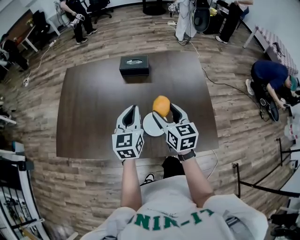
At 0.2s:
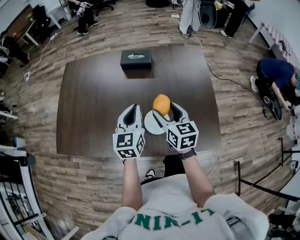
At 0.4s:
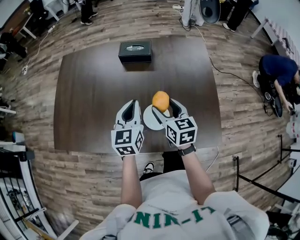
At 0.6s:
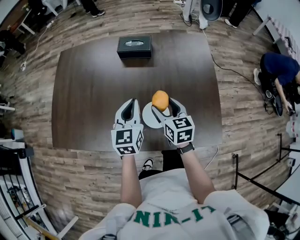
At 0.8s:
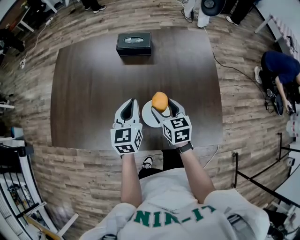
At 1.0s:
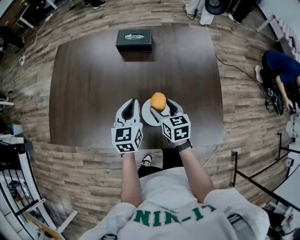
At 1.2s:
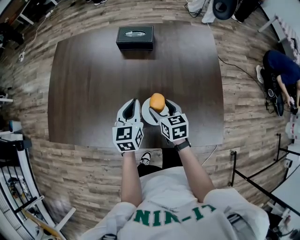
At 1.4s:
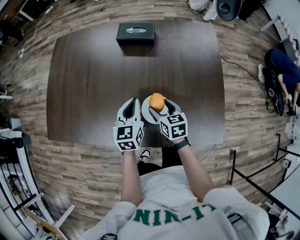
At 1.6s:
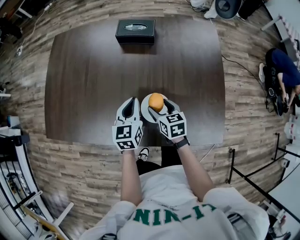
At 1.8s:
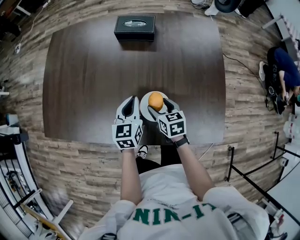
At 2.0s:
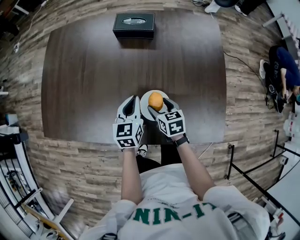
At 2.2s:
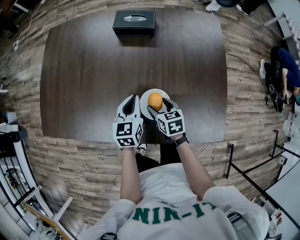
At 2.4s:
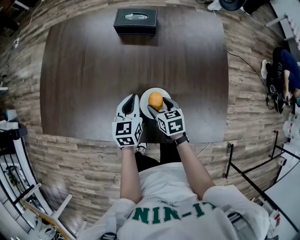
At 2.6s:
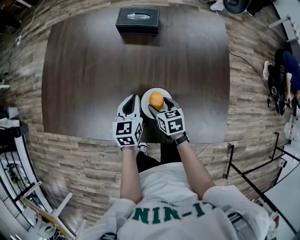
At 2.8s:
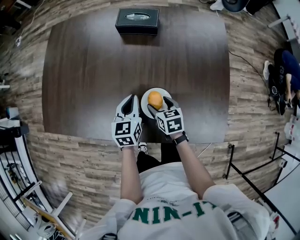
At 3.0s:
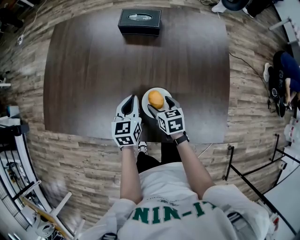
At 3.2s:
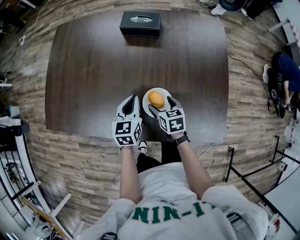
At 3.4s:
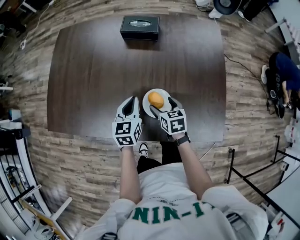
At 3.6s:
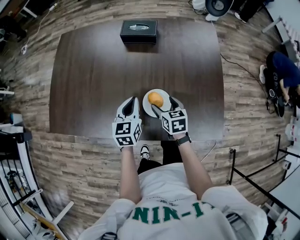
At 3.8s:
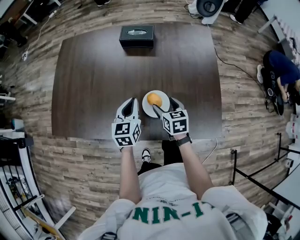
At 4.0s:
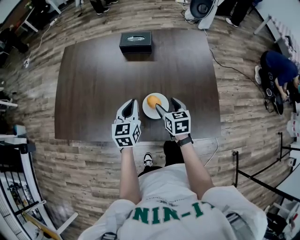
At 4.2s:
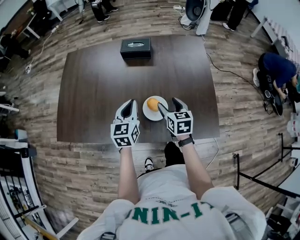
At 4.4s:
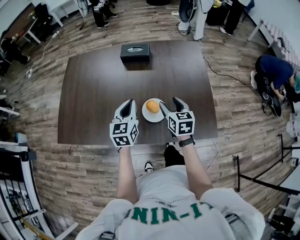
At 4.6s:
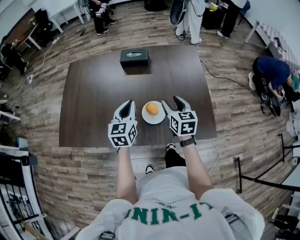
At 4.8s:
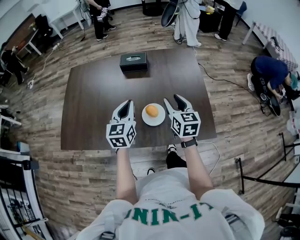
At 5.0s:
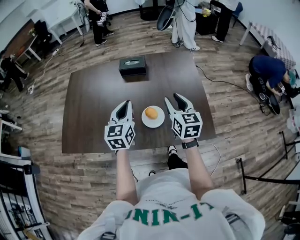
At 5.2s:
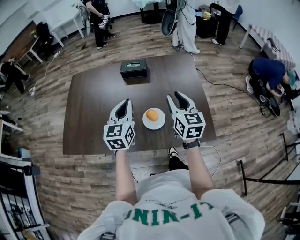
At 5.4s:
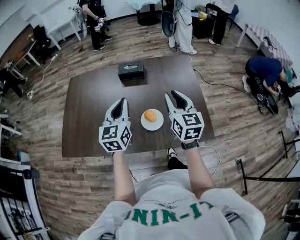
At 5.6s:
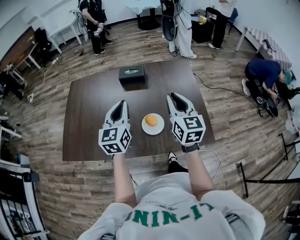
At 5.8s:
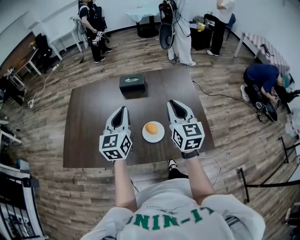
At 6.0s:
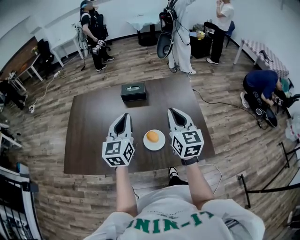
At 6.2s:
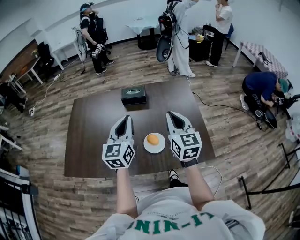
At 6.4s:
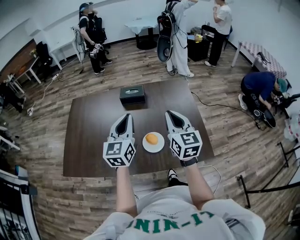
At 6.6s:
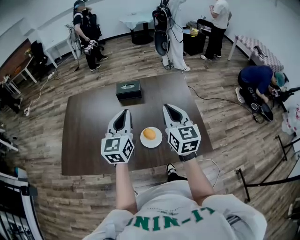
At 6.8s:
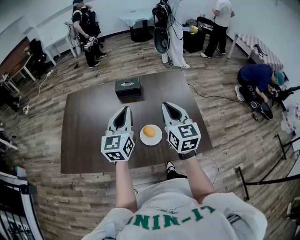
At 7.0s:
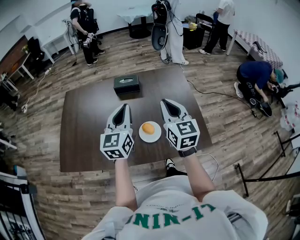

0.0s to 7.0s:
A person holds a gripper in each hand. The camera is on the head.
0.0s to 1.4s: Both grippers travel together downward, approximately 20 cm. The right gripper turns by about 20 degrees.
1.4s to 2.8s: Both grippers move downward, approximately 5 cm.
2.8s to 4.2s: The right gripper heads upward, covering roughly 15 cm, and rotates some 20 degrees. Meanwhile the left gripper travels upward and backward by about 15 cm.
4.2s to 5.6s: The grippers both shift upward by roughly 20 cm. The right gripper swivels roughly 30 degrees, and closes up.
5.6s to 7.0s: There are only small adjustments of the grippers.

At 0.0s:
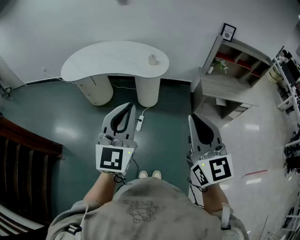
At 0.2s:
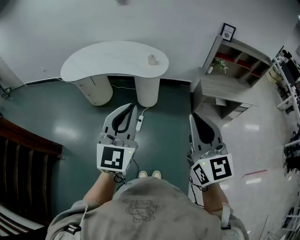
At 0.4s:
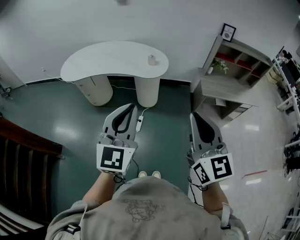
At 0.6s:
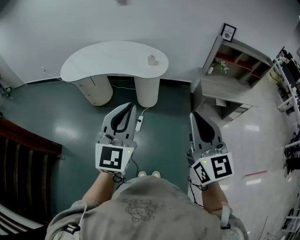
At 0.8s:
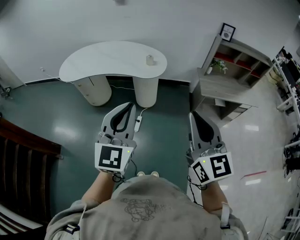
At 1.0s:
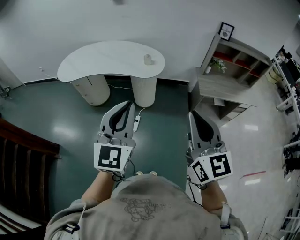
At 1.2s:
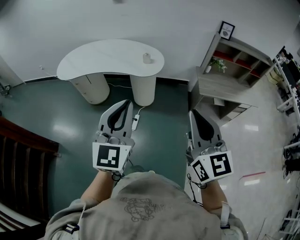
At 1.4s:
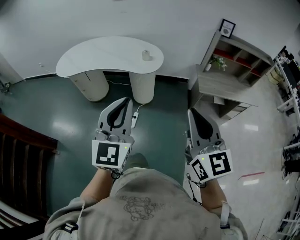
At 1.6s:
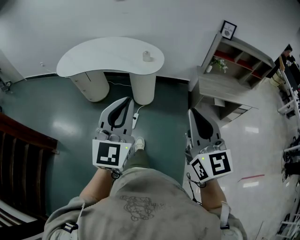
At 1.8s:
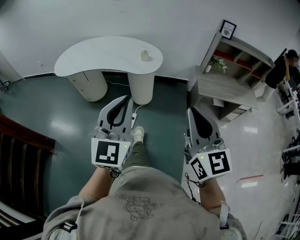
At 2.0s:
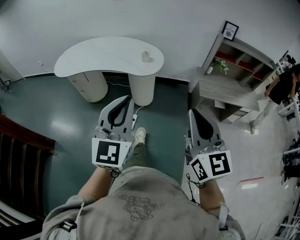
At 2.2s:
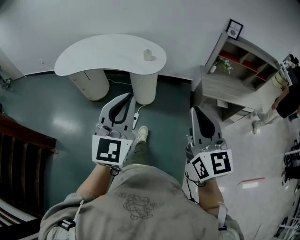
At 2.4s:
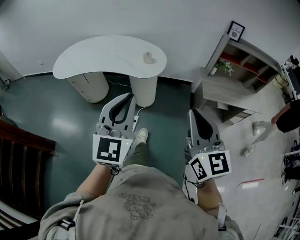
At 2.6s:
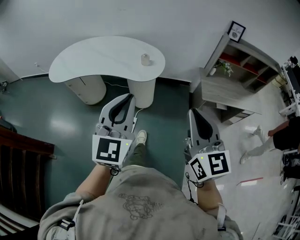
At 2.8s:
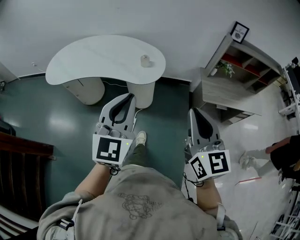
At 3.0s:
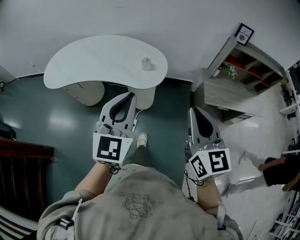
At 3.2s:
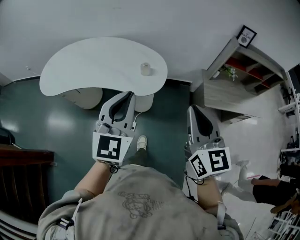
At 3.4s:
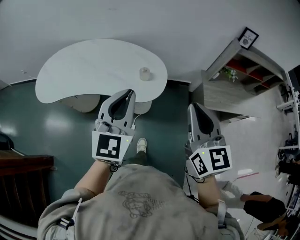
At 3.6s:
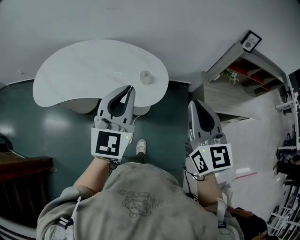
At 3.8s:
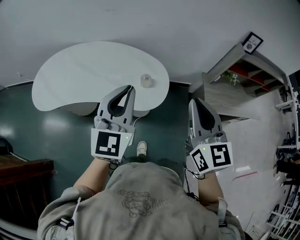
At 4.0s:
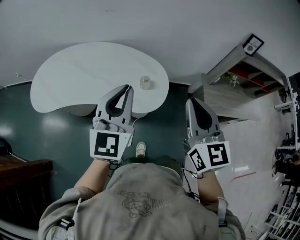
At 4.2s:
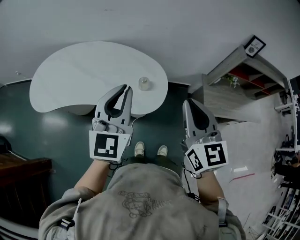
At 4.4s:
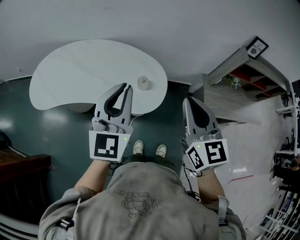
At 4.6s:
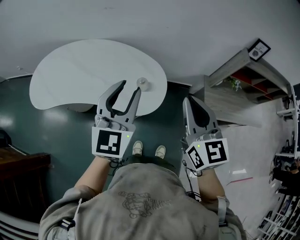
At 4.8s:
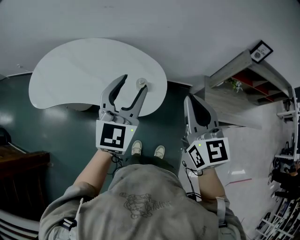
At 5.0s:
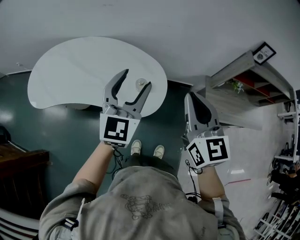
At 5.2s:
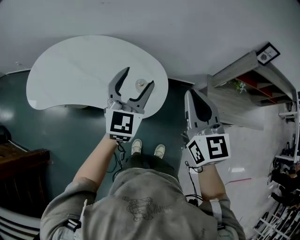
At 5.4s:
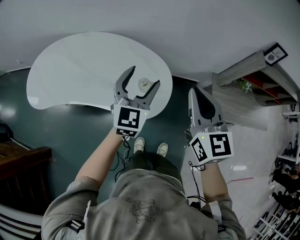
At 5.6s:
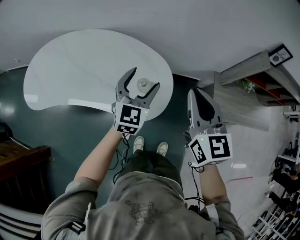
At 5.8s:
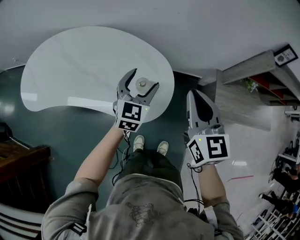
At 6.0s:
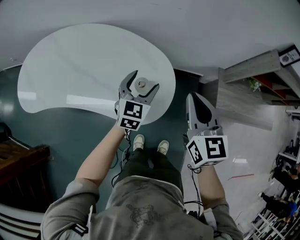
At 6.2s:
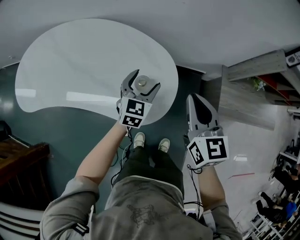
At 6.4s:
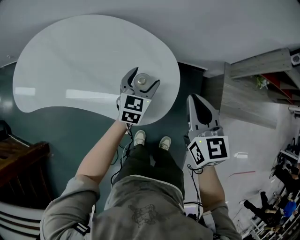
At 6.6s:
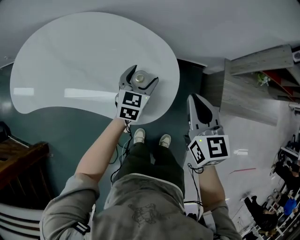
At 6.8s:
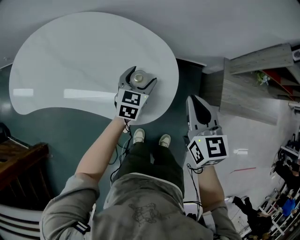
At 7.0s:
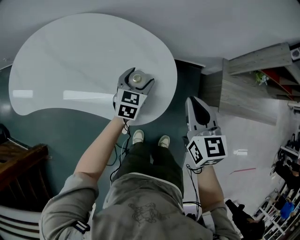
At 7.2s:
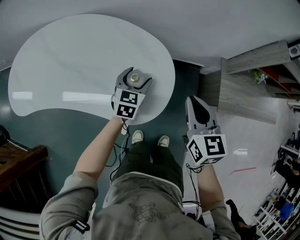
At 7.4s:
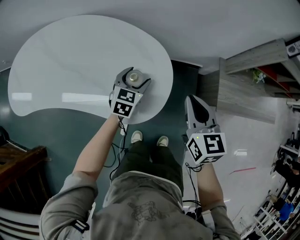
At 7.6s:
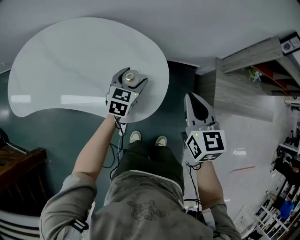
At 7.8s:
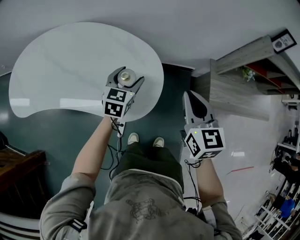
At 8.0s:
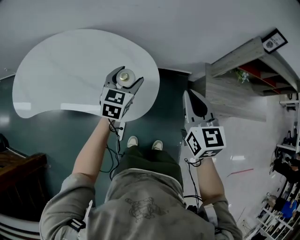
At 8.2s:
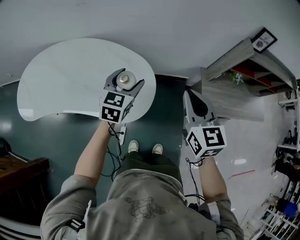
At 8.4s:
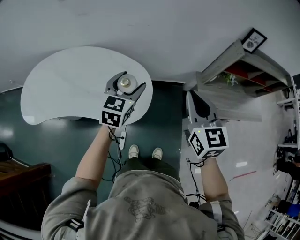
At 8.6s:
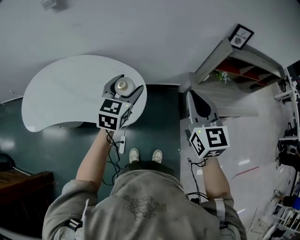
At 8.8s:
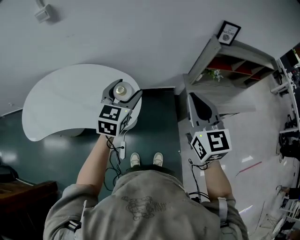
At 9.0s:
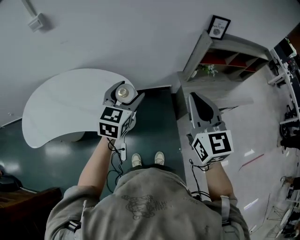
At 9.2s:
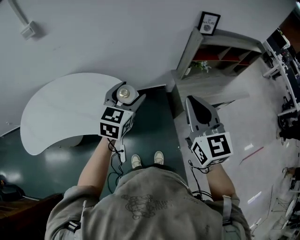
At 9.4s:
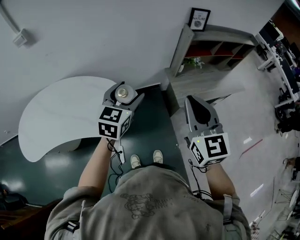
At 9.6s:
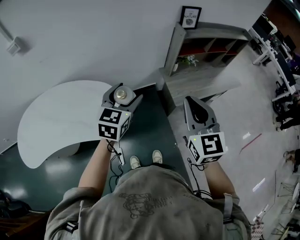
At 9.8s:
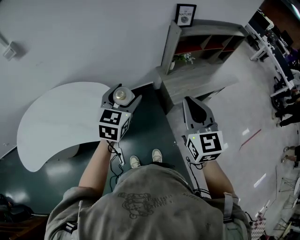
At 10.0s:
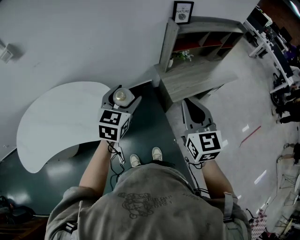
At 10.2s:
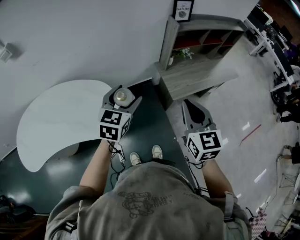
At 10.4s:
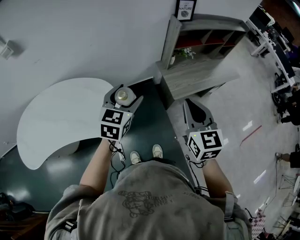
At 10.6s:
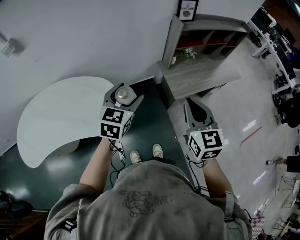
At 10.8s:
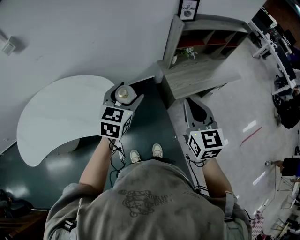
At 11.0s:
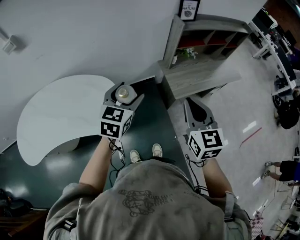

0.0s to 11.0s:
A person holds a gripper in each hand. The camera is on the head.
0.0s to 1.6s: The grippers both shift to the right by about 5 cm.
1.6s to 3.2s: The grippers both shift forward by approximately 30 cm.
3.2s to 4.8s: Both grippers travel together forward, some 20 cm. The left gripper opens up.
4.8s to 6.2s: The left gripper moves downward and forward, approximately 35 cm, rotates some 20 degrees, and opens. The right gripper goes roughly 25 cm downward and forward.
6.2s to 7.8s: The left gripper reaches approximately 10 cm downward, then returns. The right gripper moves some 5 cm.
7.8s to 9.4s: The right gripper shifts approximately 30 cm upward, to the right and backward, and rotates approximately 20 degrees. Meanwhile the left gripper moves upward and to the right, approximately 35 cm, and changes its angle by roughly 20 degrees.
9.4s to 11.0s: The right gripper goes approximately 5 cm downward.

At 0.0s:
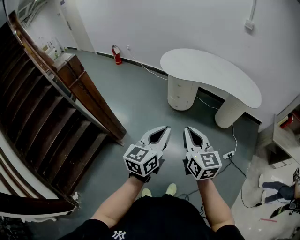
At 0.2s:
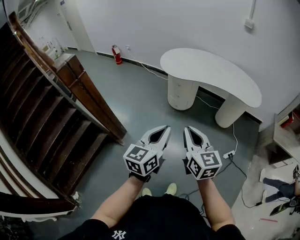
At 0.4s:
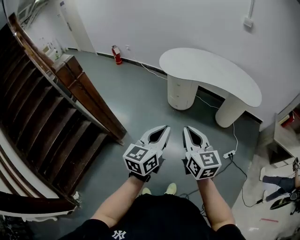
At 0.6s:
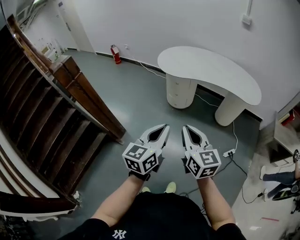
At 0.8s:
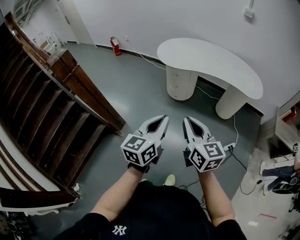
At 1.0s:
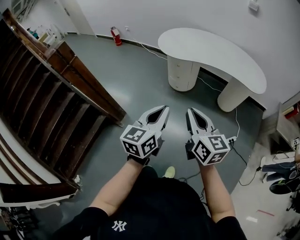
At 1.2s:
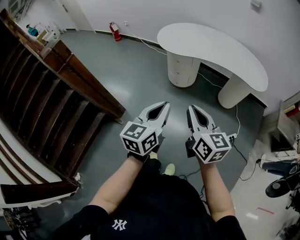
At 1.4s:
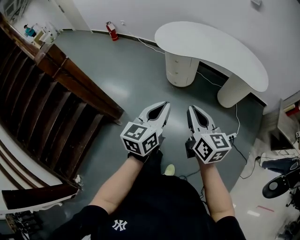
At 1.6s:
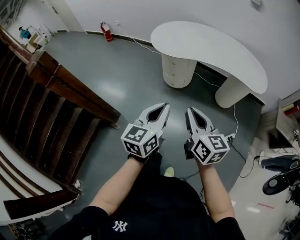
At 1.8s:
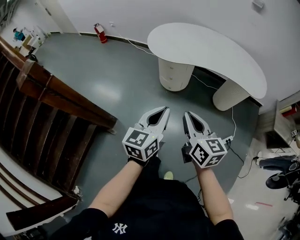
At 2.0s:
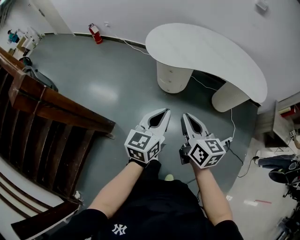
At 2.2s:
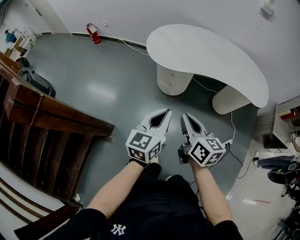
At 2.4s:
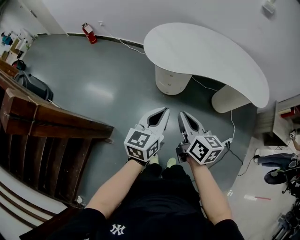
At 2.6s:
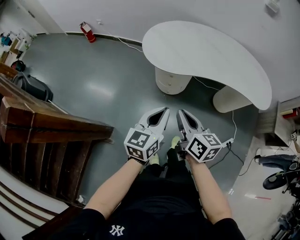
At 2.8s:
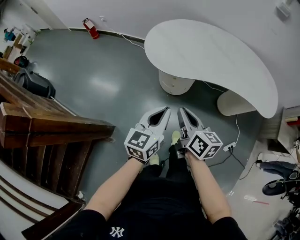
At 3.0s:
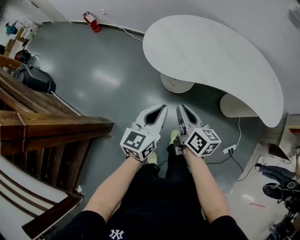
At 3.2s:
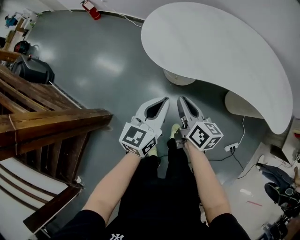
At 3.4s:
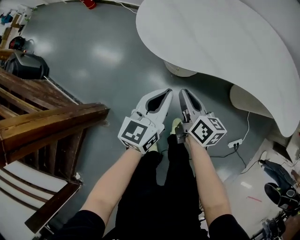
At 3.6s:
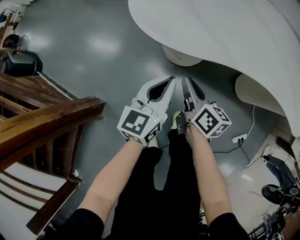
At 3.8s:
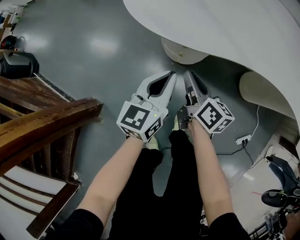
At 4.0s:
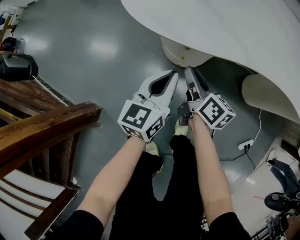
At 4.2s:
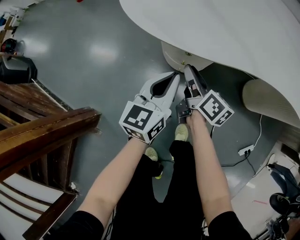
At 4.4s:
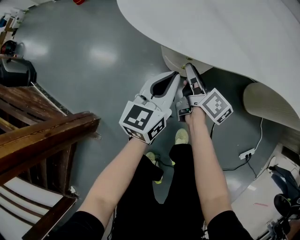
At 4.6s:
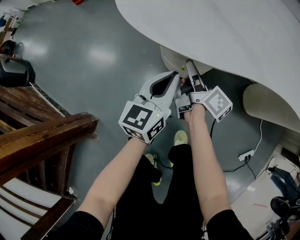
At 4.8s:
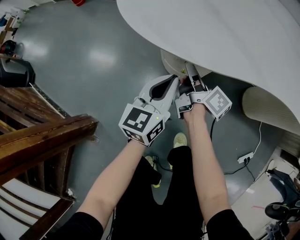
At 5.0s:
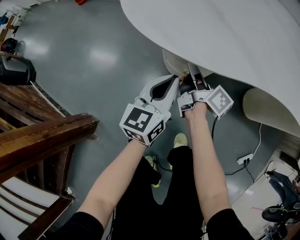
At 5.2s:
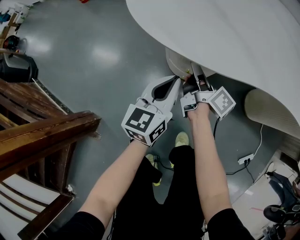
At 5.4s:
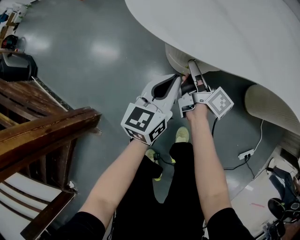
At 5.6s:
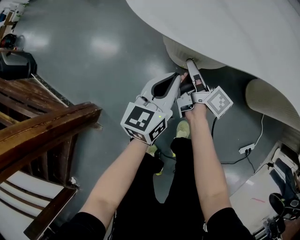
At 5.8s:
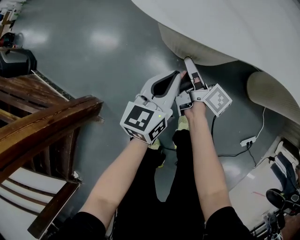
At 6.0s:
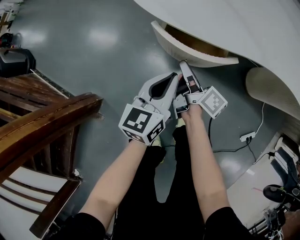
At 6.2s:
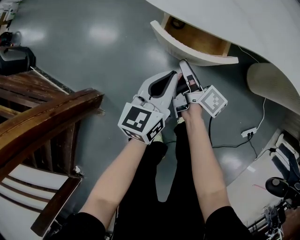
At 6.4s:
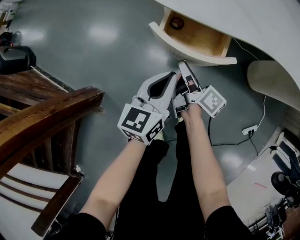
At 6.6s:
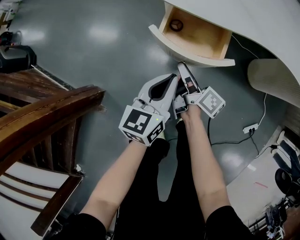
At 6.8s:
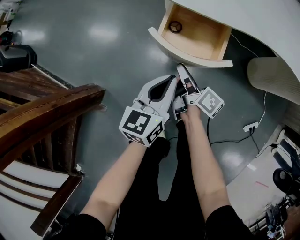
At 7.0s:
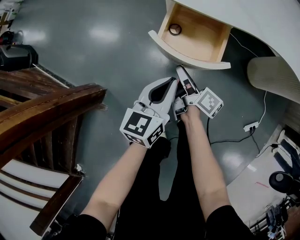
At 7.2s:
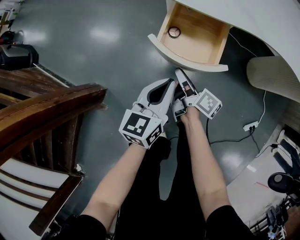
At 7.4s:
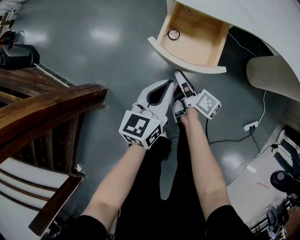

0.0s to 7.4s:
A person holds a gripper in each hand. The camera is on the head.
0.0s to 1.4s: The grippers both shift forward and to the right by roughly 10 cm.
1.4s to 3.0s: Both grippers are carried forward, roughly 40 cm. The right gripper turns by some 20 degrees.
3.0s to 4.4s: Both grippers move downward and forward, approximately 40 cm. The right gripper turns by approximately 20 degrees, and opens.
4.4s to 6.0s: The two grippers go approximately 5 cm backward.
6.0s to 7.4s: Both grippers travel together backward, approximately 10 cm.
